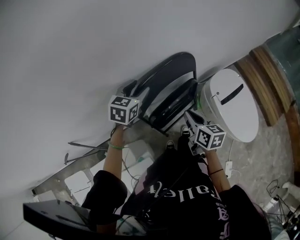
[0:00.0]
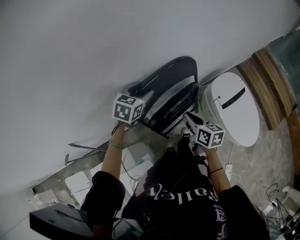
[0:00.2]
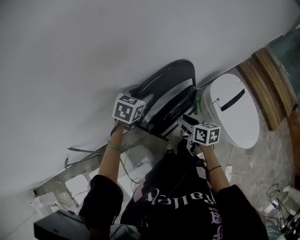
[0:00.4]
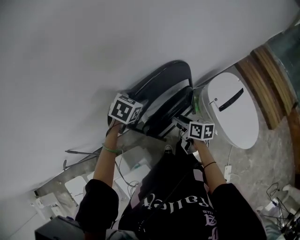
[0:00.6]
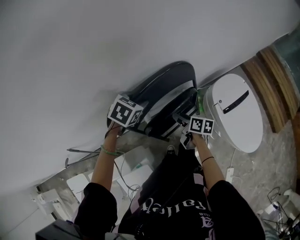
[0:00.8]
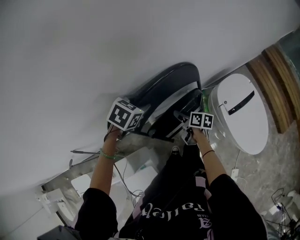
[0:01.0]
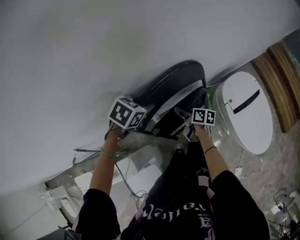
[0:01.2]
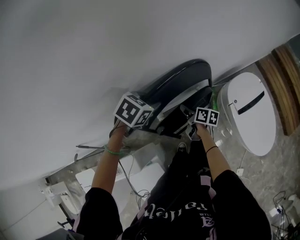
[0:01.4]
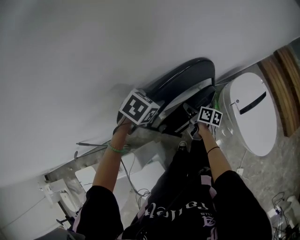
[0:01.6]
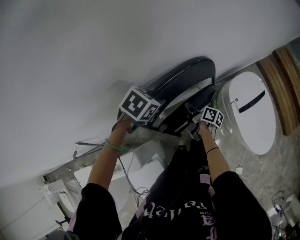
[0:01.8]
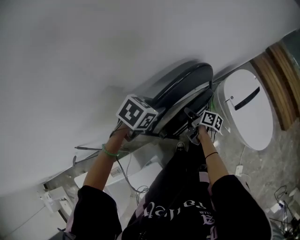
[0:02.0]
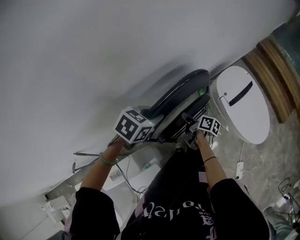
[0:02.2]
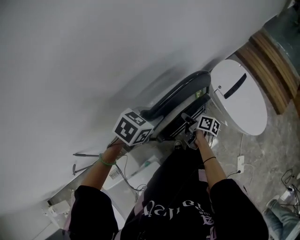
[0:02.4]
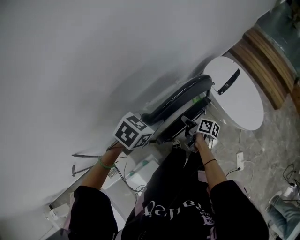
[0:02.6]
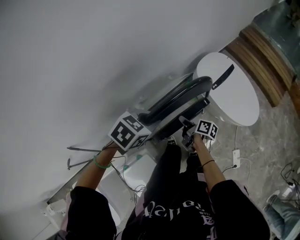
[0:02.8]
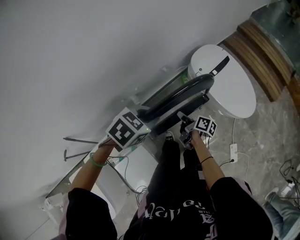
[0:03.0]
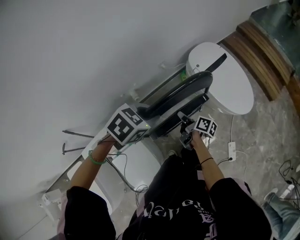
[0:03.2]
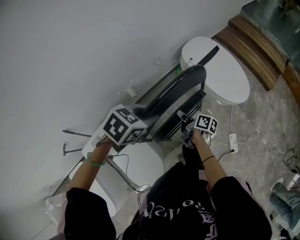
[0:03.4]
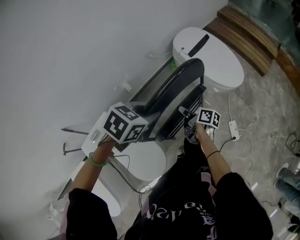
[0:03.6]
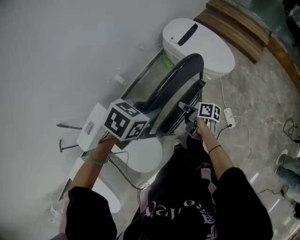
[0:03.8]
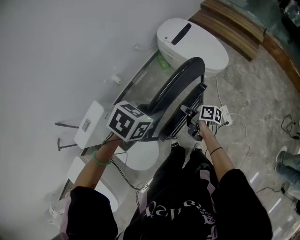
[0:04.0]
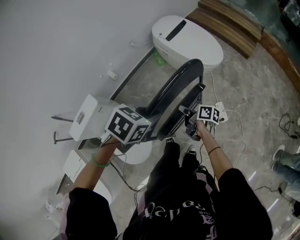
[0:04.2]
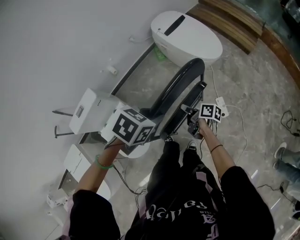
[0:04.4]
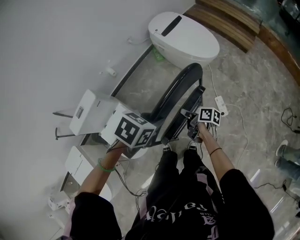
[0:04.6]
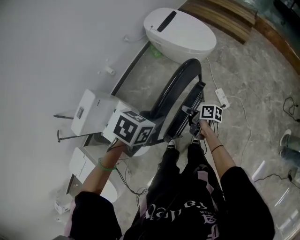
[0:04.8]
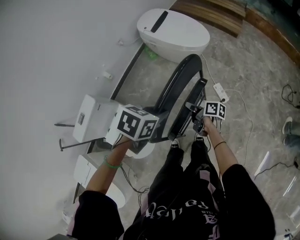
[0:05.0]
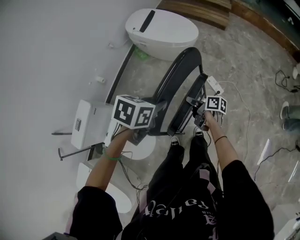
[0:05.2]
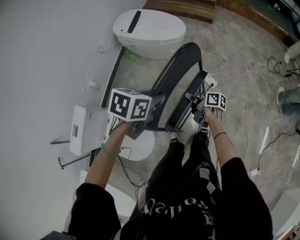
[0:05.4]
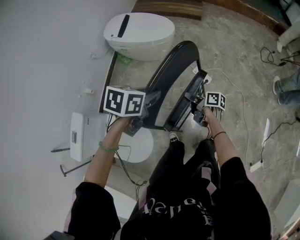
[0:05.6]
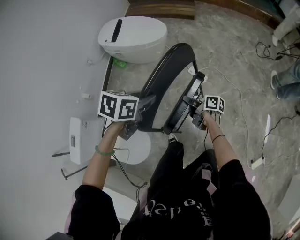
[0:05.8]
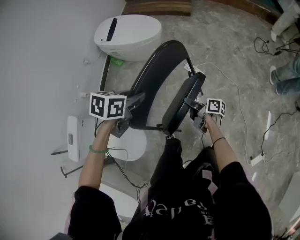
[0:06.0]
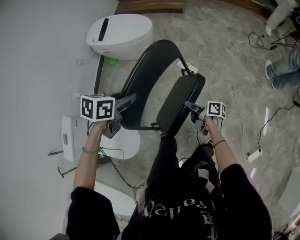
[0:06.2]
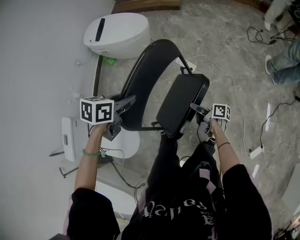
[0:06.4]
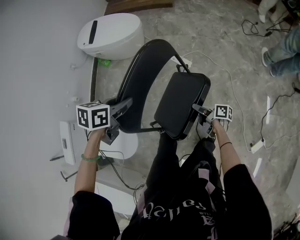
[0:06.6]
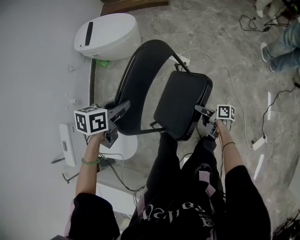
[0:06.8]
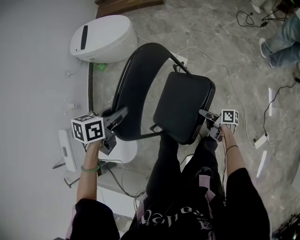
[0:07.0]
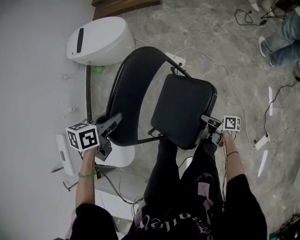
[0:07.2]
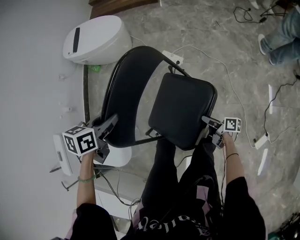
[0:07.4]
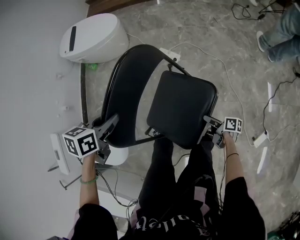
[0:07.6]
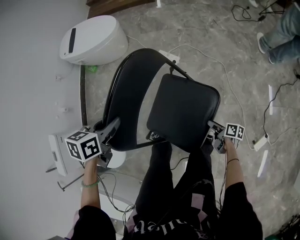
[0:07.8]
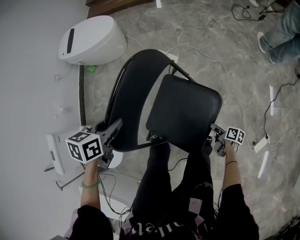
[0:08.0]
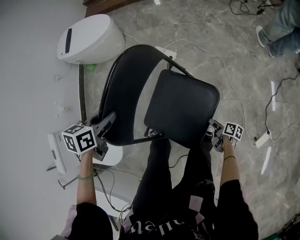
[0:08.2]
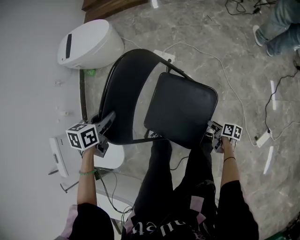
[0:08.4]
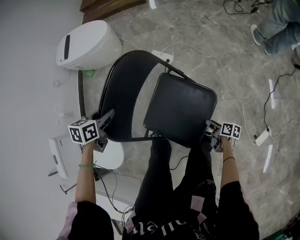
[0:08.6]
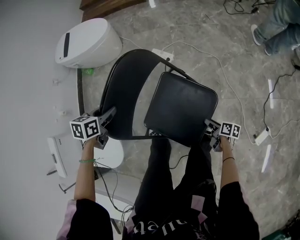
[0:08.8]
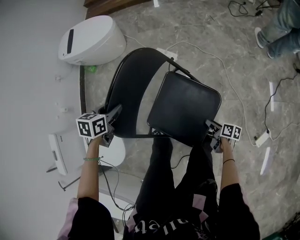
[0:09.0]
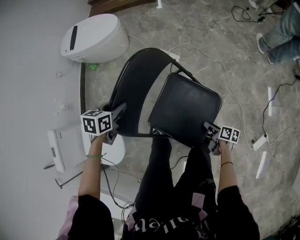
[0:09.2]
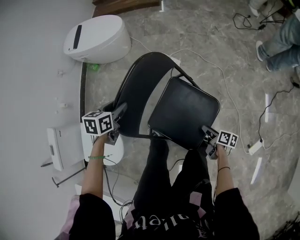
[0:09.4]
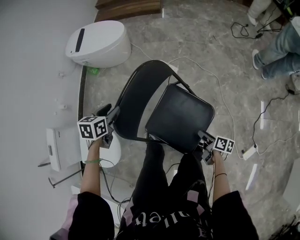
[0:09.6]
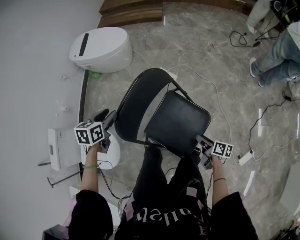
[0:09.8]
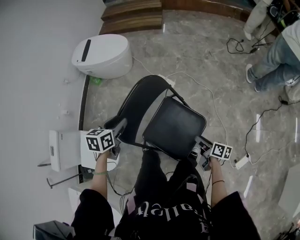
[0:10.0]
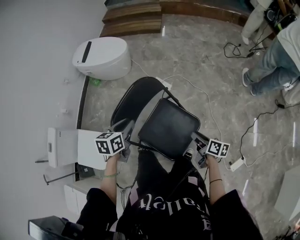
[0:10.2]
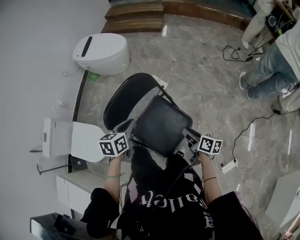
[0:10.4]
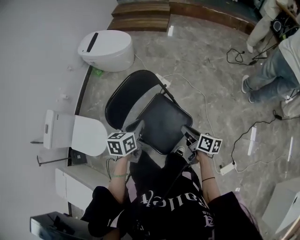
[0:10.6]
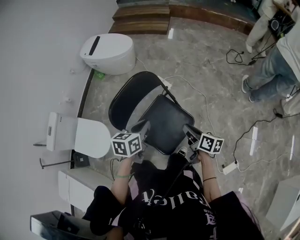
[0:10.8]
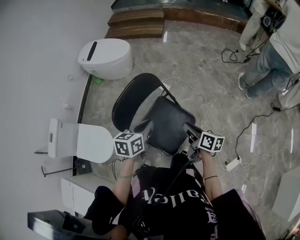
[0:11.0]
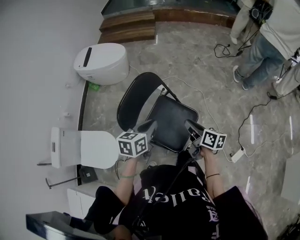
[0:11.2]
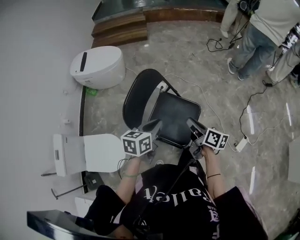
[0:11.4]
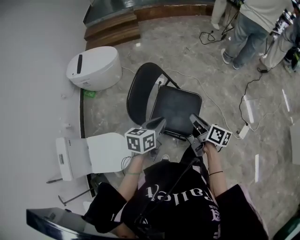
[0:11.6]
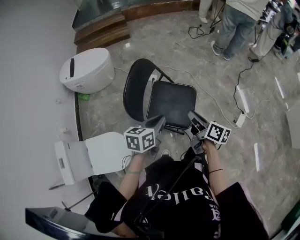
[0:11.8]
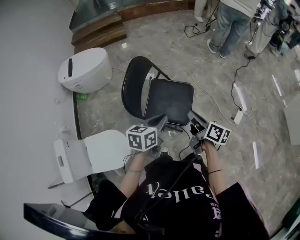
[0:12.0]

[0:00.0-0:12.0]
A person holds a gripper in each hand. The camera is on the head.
0:00.0 to 0:01.6: The right gripper travels downward and forward by roughly 25 cm, changes its angle by some 30 degrees, and opens, then closes once more. Meanwhile the left gripper travels downward by some 5 cm, points its fingers some 30 degrees further downward, and closes up.
0:01.6 to 0:03.0: The two grippers go about 30 cm backward and to the right. The left gripper changes its angle by roughly 20 degrees; the right gripper turns by some 20 degrees.
0:03.0 to 0:04.4: The two grippers travel together, backward and to the right, roughly 50 cm.
0:04.4 to 0:06.0: The left gripper changes place by some 10 cm; the right gripper changes place by some 25 cm, and changes its angle by roughly 30 degrees.
0:06.0 to 0:07.6: The right gripper travels to the right, downward and backward by about 40 cm, and opens. Meanwhile the left gripper shifts approximately 20 cm to the right, downward and backward.
0:07.6 to 0:09.0: The left gripper goes approximately 10 cm downward. Meanwhile the right gripper shifts roughly 10 cm downward and backward.
0:09.0 to 0:10.4: The right gripper heads upward, covering about 30 cm, and changes its angle by approximately 20 degrees. Meanwhile the left gripper heads upward, to the right and backward, covering some 25 cm, turns by approximately 30 degrees, and closes its fingers.
0:10.4 to 0:12.0: The left gripper shifts by approximately 25 cm, and turns by some 40 degrees. Meanwhile the right gripper moves roughly 30 cm, and changes its angle by approximately 30 degrees.

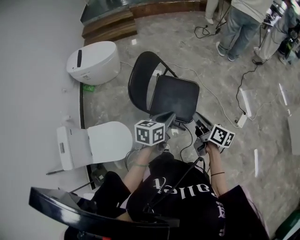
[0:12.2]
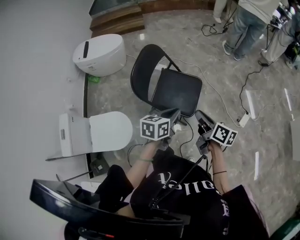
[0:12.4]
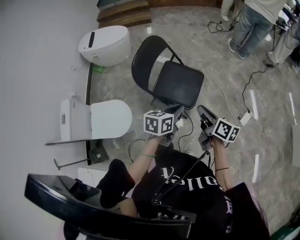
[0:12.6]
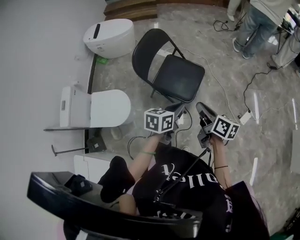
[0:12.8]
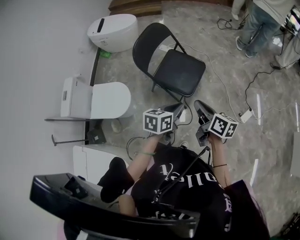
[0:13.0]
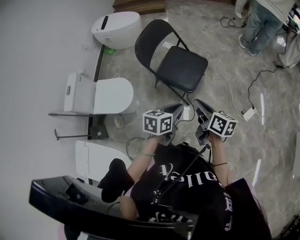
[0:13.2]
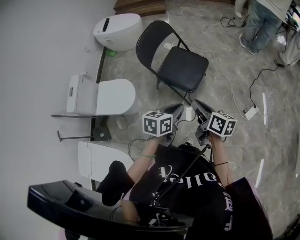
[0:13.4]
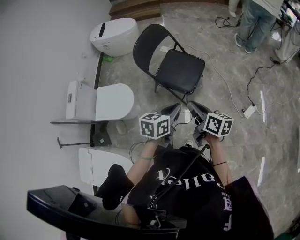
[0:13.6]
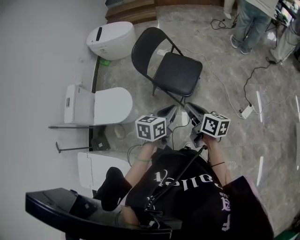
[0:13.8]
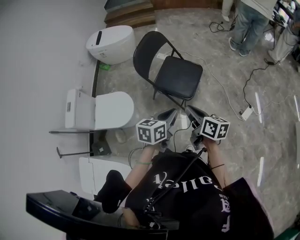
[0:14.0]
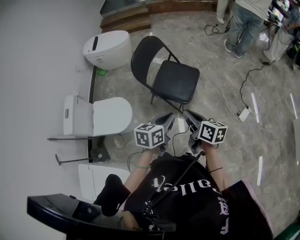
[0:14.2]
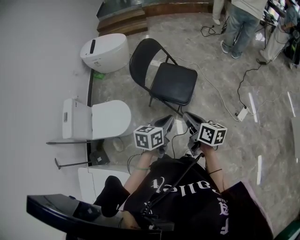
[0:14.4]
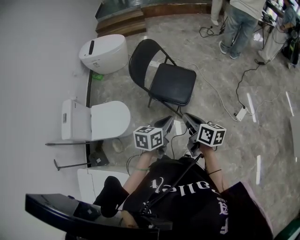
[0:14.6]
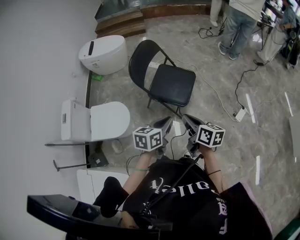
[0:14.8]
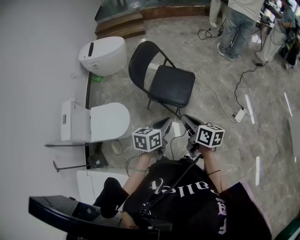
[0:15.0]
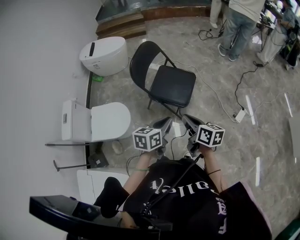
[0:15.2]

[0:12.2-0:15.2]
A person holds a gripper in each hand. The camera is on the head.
0:12.2 to 0:13.8: The left gripper moves backward and to the right, approximately 25 cm; the right gripper travels backward by some 20 cm, and rotates roughly 20 degrees.
0:13.8 to 0:15.2: The grippers move only a little.

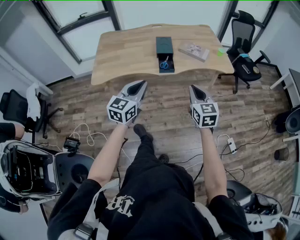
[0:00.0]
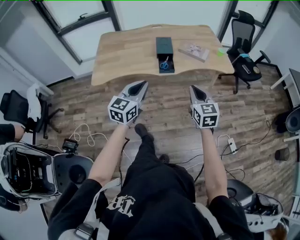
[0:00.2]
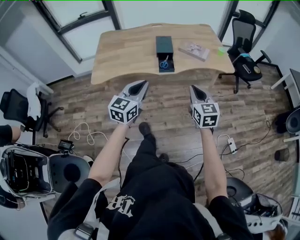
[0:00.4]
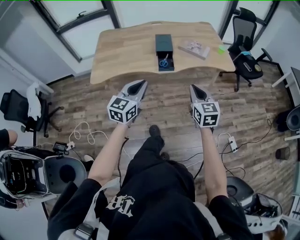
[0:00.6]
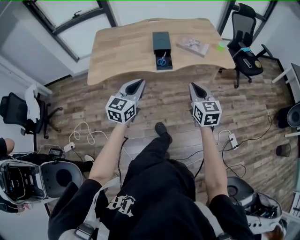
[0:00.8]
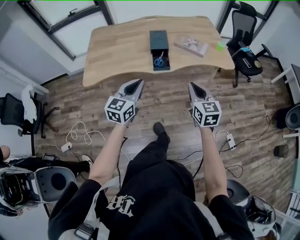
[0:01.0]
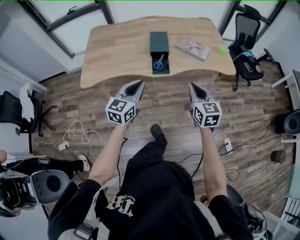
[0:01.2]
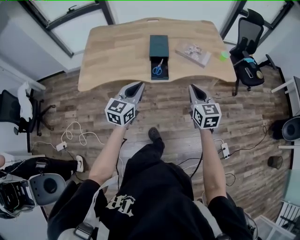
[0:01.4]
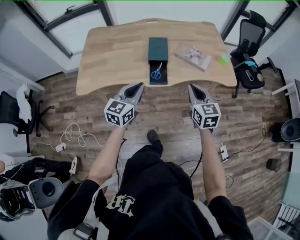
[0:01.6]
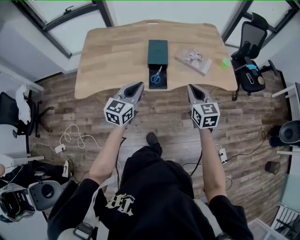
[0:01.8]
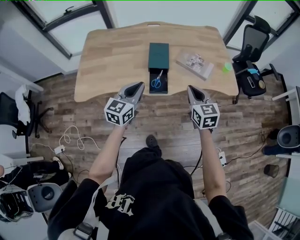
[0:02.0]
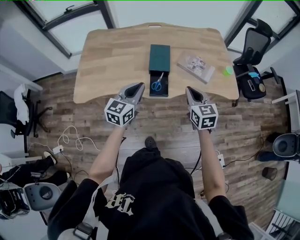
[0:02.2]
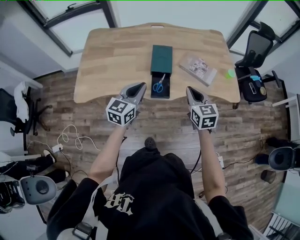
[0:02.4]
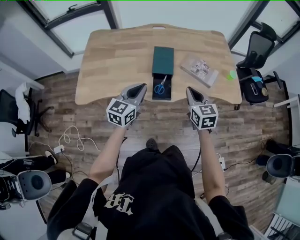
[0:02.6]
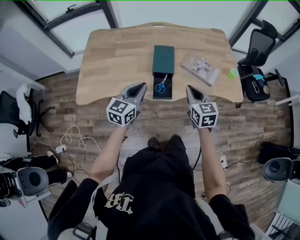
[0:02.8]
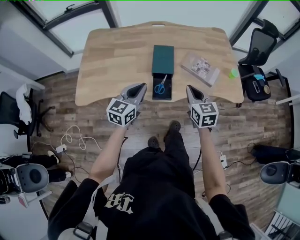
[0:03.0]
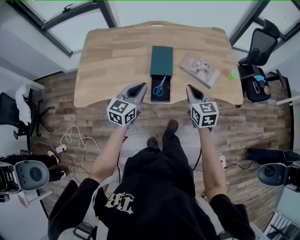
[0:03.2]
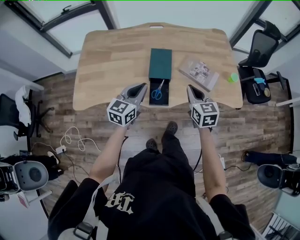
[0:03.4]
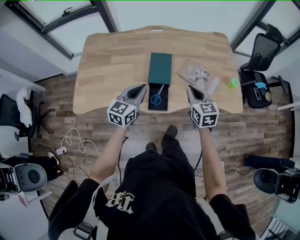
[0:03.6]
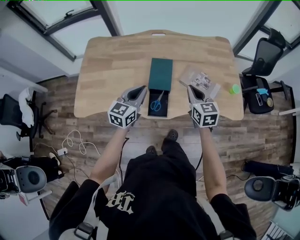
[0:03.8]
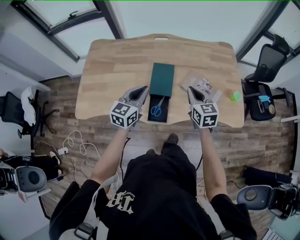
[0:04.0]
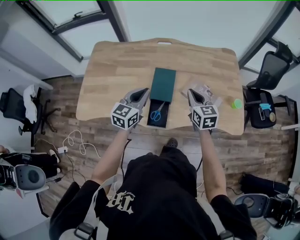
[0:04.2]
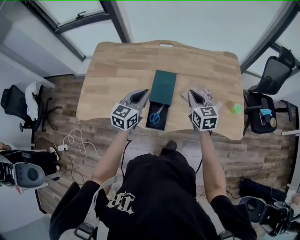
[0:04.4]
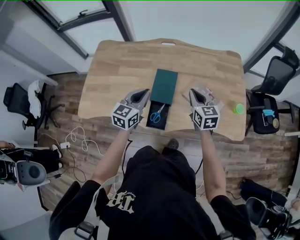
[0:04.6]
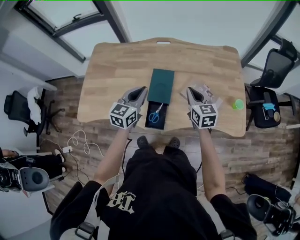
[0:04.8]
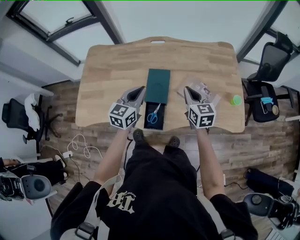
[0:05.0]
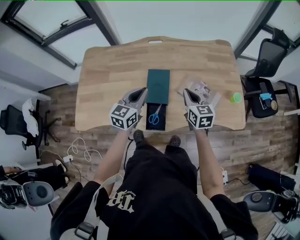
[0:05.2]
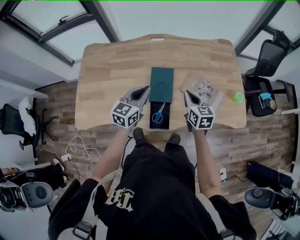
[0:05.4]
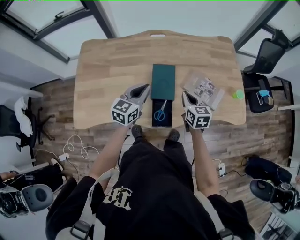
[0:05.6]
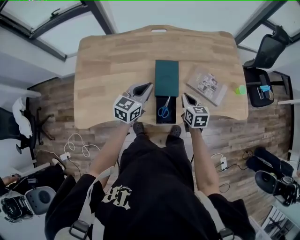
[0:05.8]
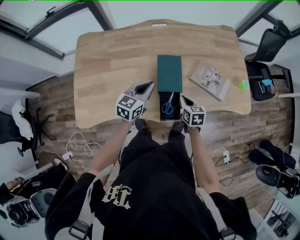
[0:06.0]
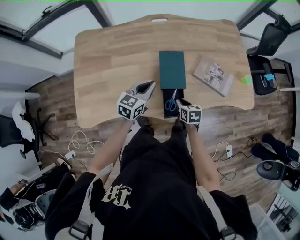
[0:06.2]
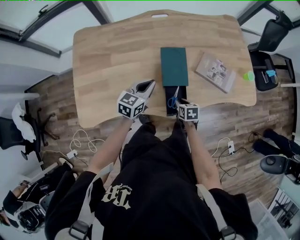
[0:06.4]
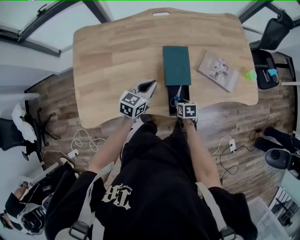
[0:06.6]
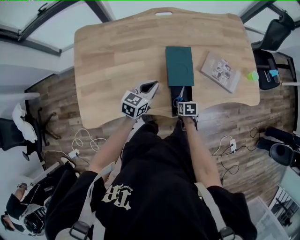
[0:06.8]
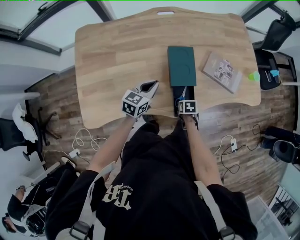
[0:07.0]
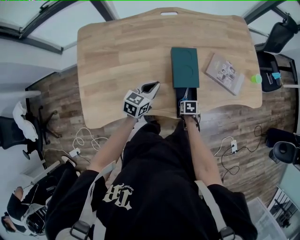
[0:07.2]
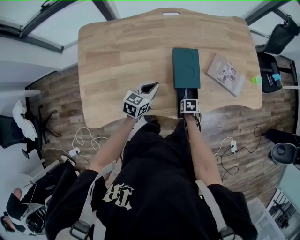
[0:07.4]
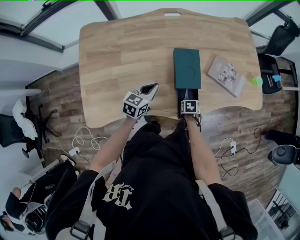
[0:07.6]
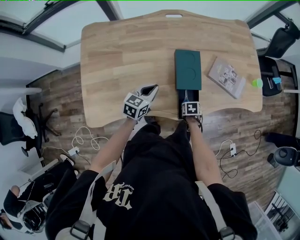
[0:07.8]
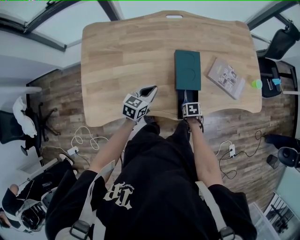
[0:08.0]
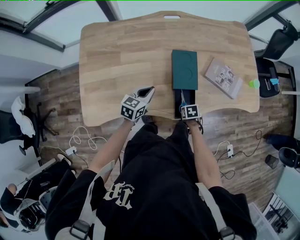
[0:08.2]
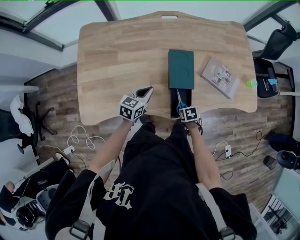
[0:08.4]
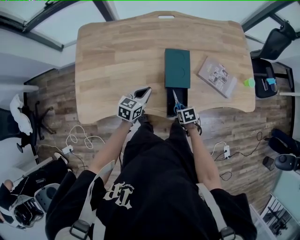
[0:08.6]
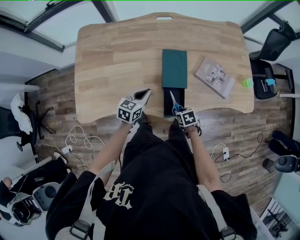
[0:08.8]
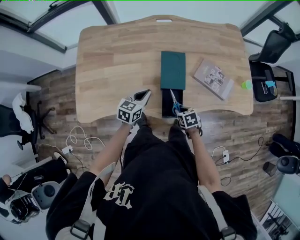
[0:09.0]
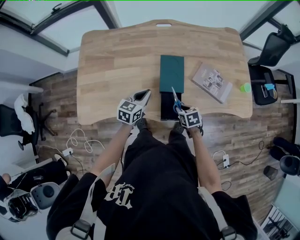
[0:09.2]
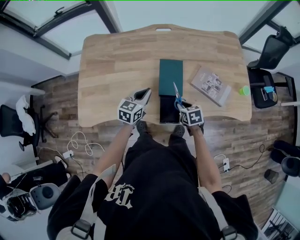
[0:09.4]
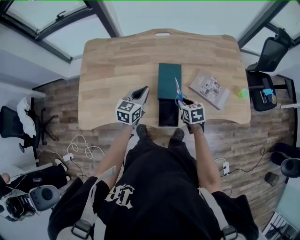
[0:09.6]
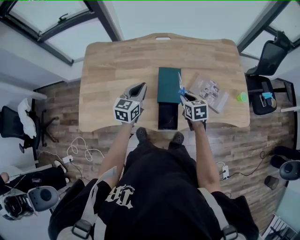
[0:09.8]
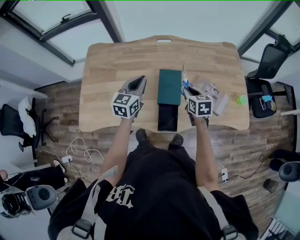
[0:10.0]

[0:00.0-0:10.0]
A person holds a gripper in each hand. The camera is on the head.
0:00.0 to 0:01.4: Both grippers move forward, about 15 cm.
0:01.4 to 0:02.8: The two grippers go approximately 15 cm forward.
0:02.8 to 0:04.2: Both grippers travel together forward, some 20 cm.
0:04.2 to 0:05.8: The right gripper heads downward and to the left, covering approximately 15 cm, and rotates about 20 degrees. Meanwhile the left gripper shifts roughly 10 cm downward and forward.
0:05.8 to 0:07.2: The right gripper moves downward, approximately 25 cm, angles its fingers downward, by roughly 40 degrees, and opens its fingers, while the left gripper heads downward, covering approximately 10 cm.
0:07.2 to 0:08.6: The right gripper ends up some 5 cm from where it was.
0:08.6 to 0:10.0: Both grippers travel together upward and forward, some 25 cm. The left gripper turns by about 20 degrees. Meanwhile the right gripper angles its fingers upward, by roughly 30 degrees.
